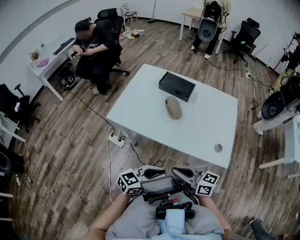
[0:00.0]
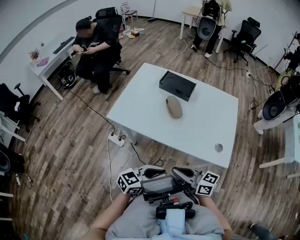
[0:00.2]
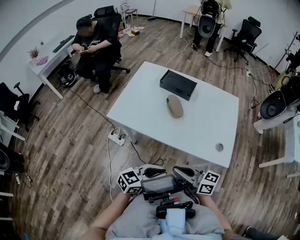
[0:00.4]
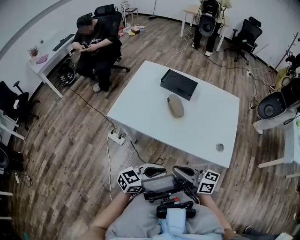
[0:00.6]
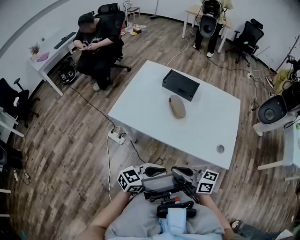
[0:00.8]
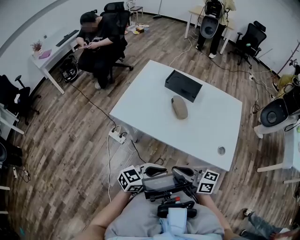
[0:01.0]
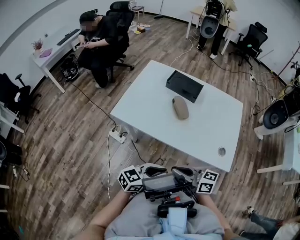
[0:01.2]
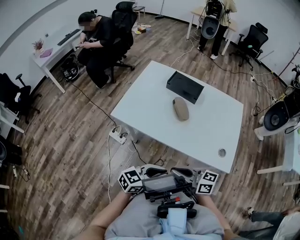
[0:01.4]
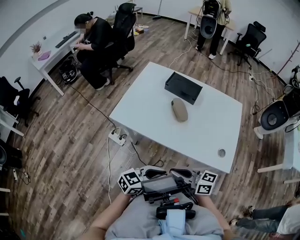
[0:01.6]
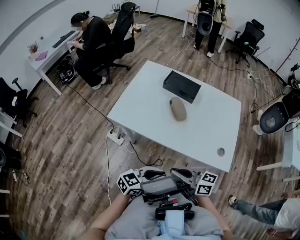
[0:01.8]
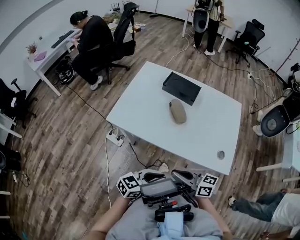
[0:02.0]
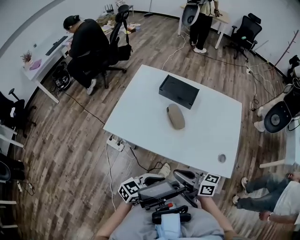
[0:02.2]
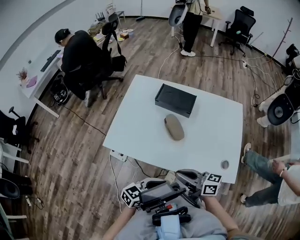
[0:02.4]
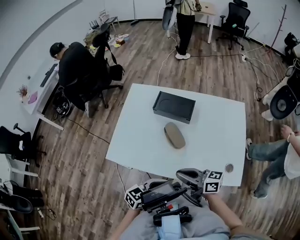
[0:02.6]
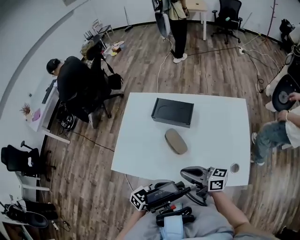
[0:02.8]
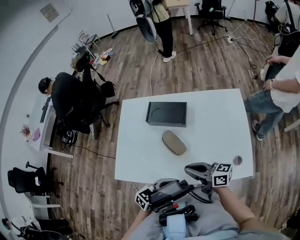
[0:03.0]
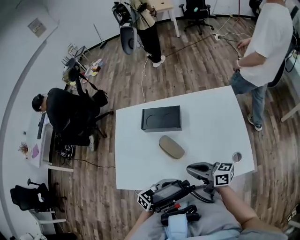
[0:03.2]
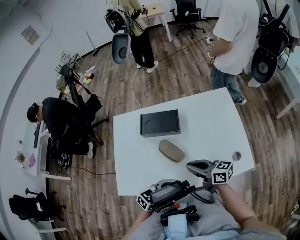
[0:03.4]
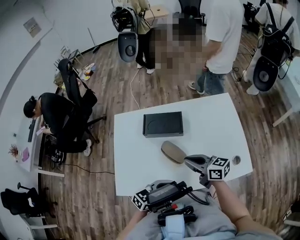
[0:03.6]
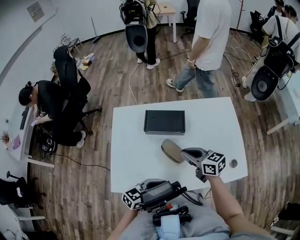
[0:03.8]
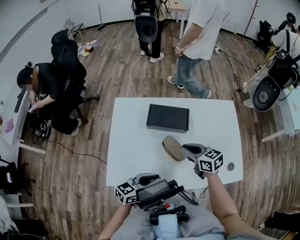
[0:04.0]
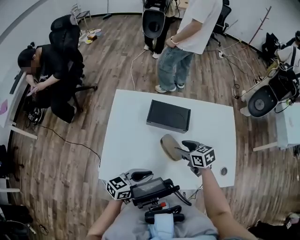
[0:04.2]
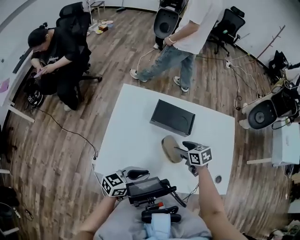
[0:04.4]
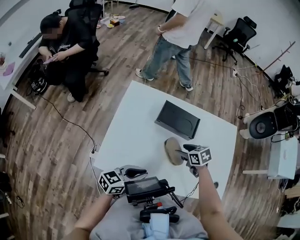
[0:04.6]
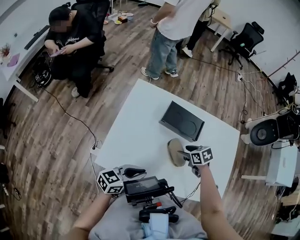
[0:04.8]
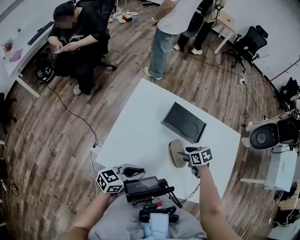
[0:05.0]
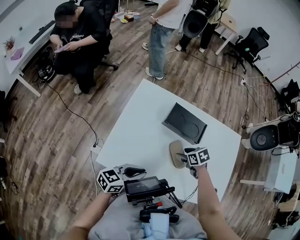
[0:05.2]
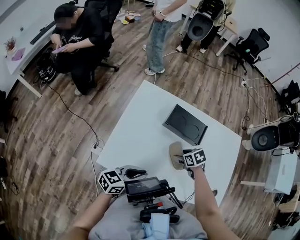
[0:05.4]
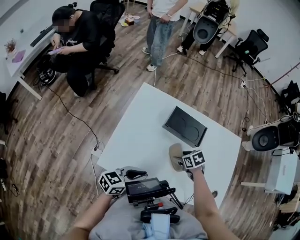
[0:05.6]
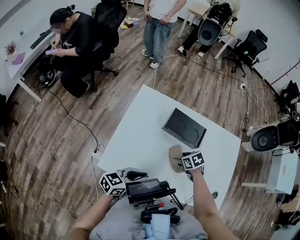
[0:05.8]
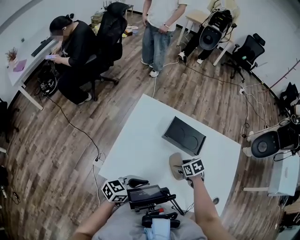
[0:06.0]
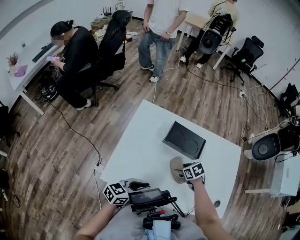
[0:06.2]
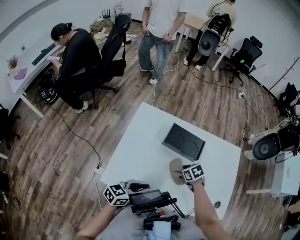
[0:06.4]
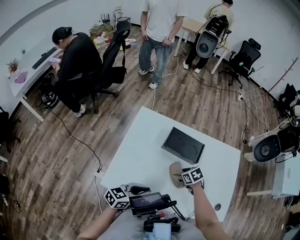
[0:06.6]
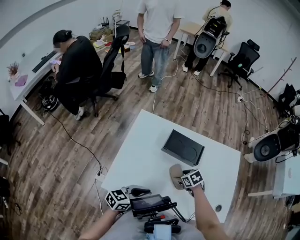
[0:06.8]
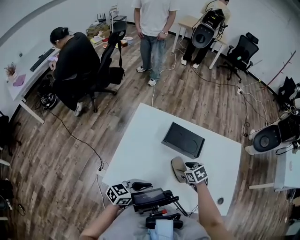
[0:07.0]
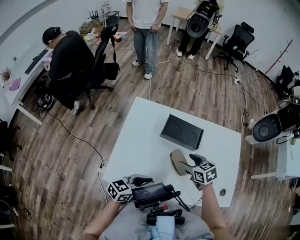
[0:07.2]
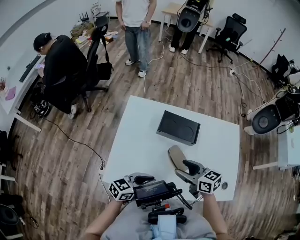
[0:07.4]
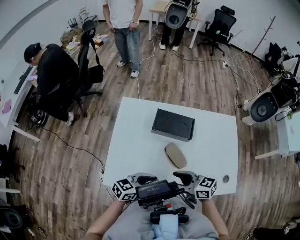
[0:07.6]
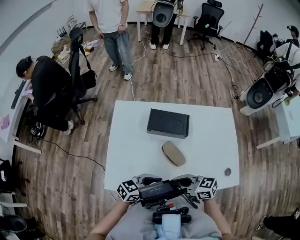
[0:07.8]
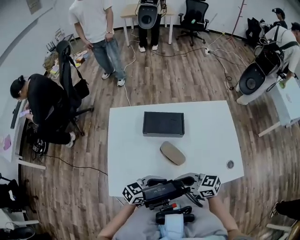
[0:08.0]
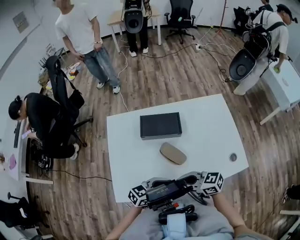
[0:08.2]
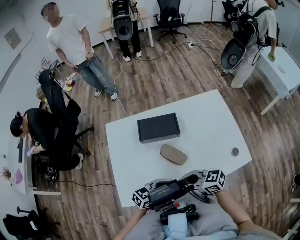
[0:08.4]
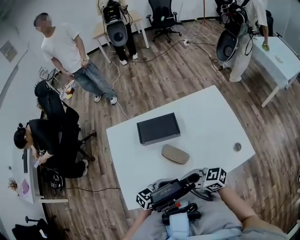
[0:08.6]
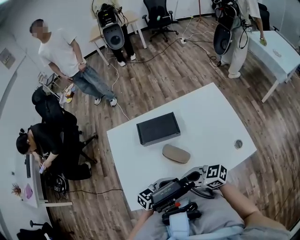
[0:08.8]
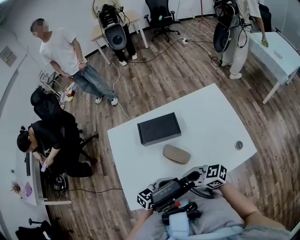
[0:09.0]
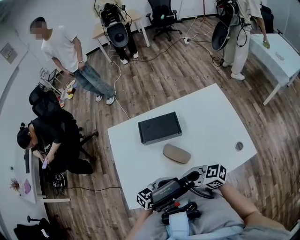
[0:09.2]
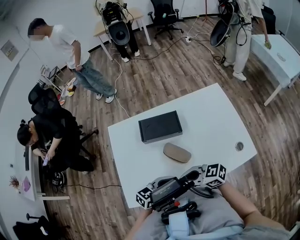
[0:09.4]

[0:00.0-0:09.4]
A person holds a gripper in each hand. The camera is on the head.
0:00.0 to 0:01.6: The grippers move only a little.
0:01.6 to 0:03.2: The right gripper ends up roughly 25 cm from where it was, and swivels approximately 20 degrees, while the left gripper changes place by about 20 cm, and changes its angle by some 20 degrees.
0:03.2 to 0:04.8: The right gripper moves approximately 20 cm, tilts its fingers about 60 degrees downward, and opens its fingers, while the left gripper changes place by some 15 cm, and swivels about 20 degrees.
0:04.8 to 0:06.2: The grippers move only a little.
0:06.2 to 0:07.8: The left gripper changes place by approximately 5 cm; the right gripper moves approximately 25 cm, tilts its fingers roughly 50 degrees upward, and closes its fingers.
0:07.8 to 0:09.4: The grippers stay close to where they were, moving slightly.

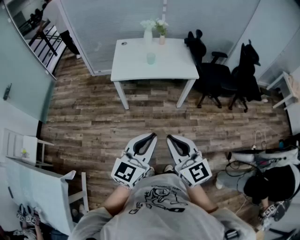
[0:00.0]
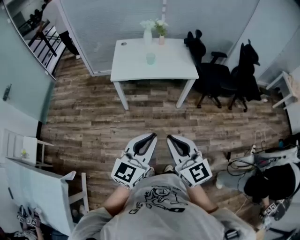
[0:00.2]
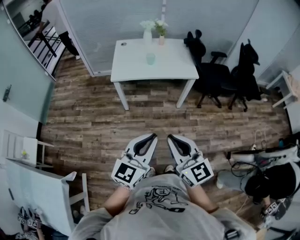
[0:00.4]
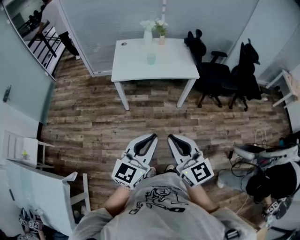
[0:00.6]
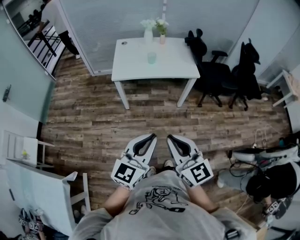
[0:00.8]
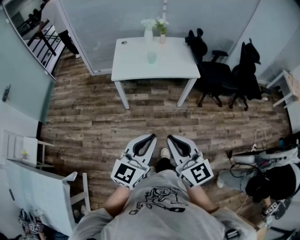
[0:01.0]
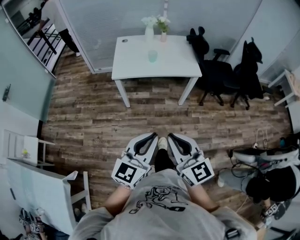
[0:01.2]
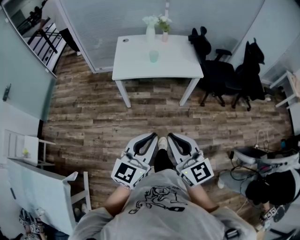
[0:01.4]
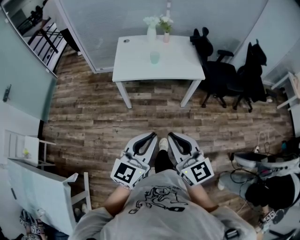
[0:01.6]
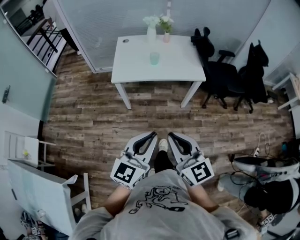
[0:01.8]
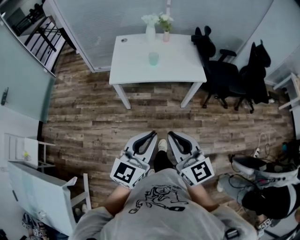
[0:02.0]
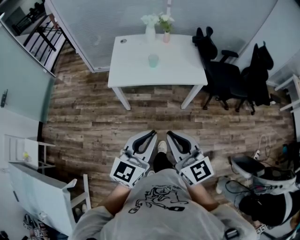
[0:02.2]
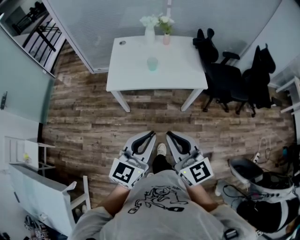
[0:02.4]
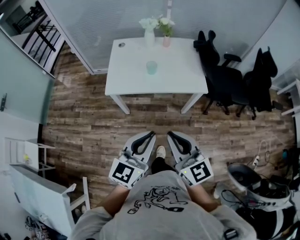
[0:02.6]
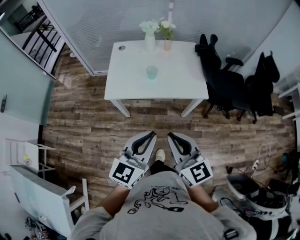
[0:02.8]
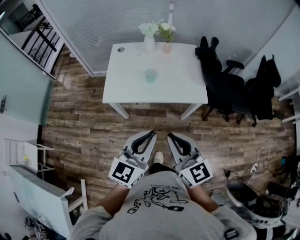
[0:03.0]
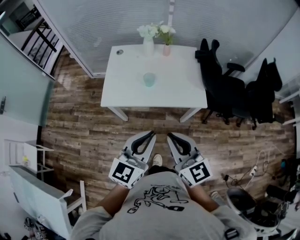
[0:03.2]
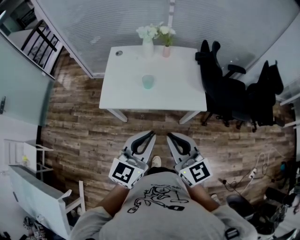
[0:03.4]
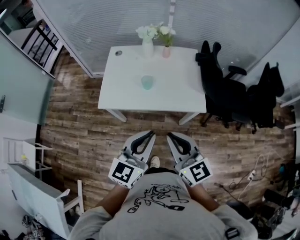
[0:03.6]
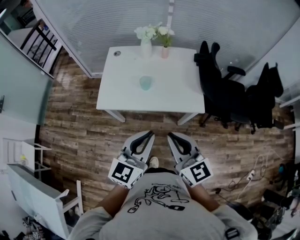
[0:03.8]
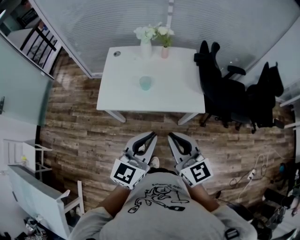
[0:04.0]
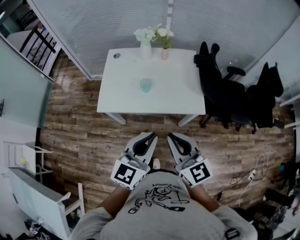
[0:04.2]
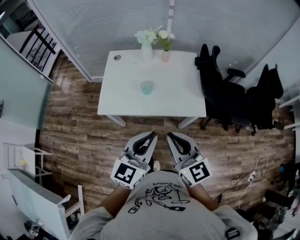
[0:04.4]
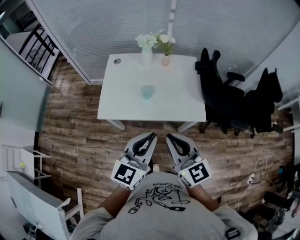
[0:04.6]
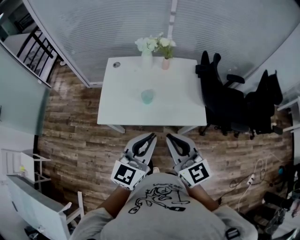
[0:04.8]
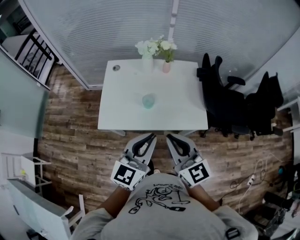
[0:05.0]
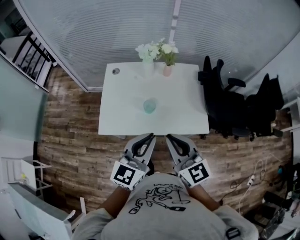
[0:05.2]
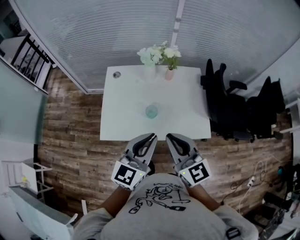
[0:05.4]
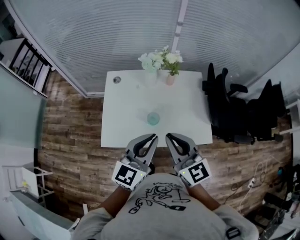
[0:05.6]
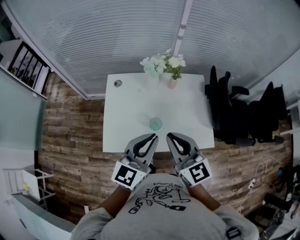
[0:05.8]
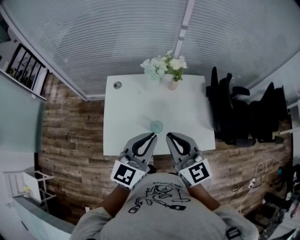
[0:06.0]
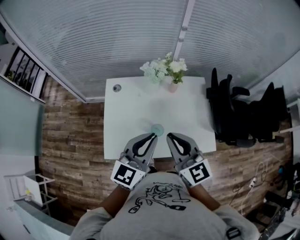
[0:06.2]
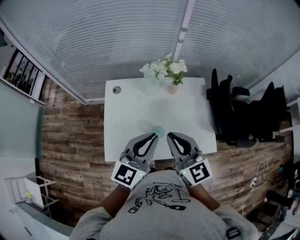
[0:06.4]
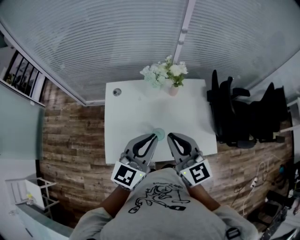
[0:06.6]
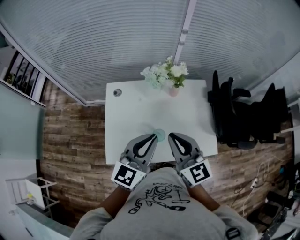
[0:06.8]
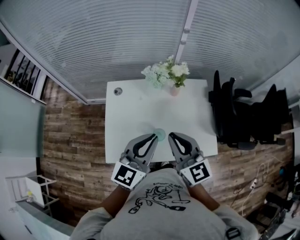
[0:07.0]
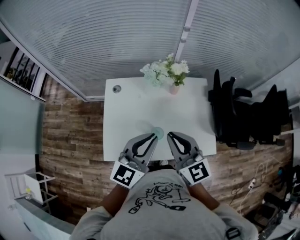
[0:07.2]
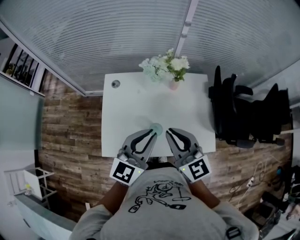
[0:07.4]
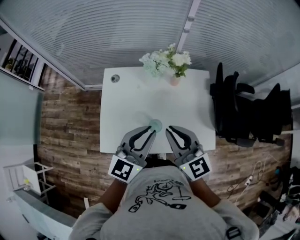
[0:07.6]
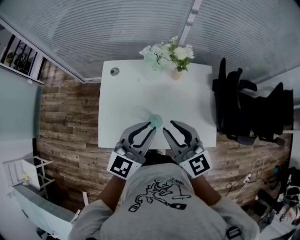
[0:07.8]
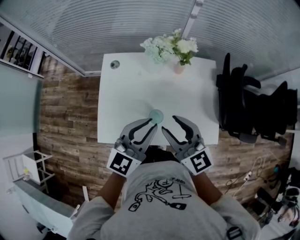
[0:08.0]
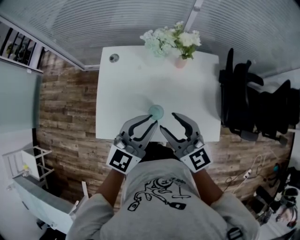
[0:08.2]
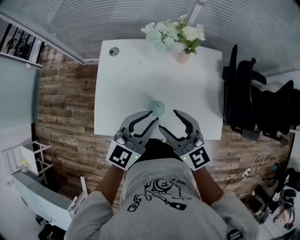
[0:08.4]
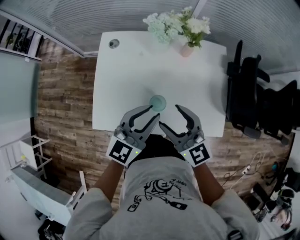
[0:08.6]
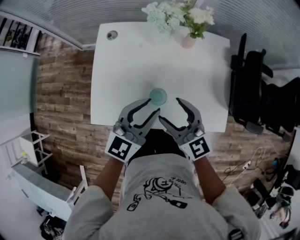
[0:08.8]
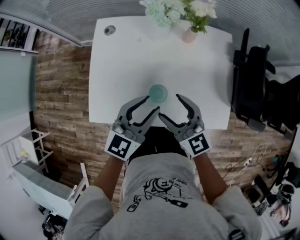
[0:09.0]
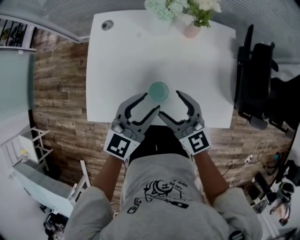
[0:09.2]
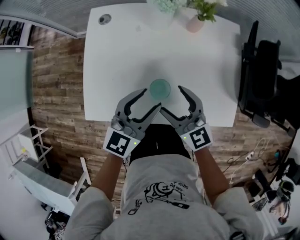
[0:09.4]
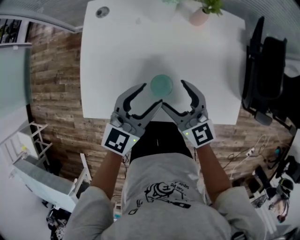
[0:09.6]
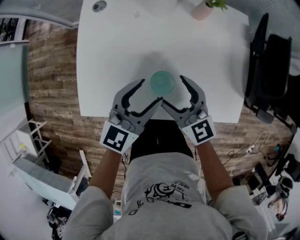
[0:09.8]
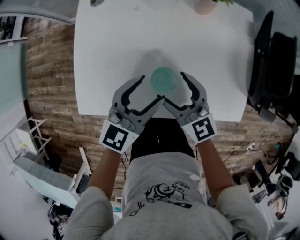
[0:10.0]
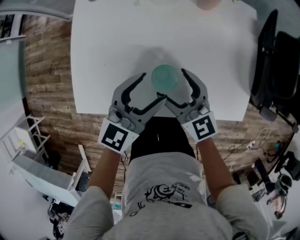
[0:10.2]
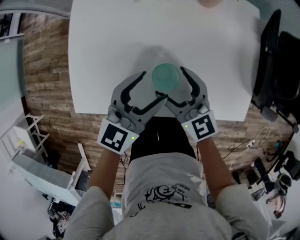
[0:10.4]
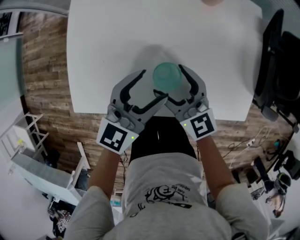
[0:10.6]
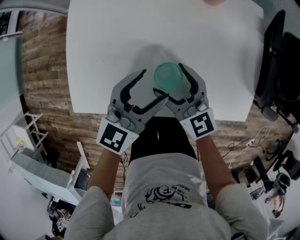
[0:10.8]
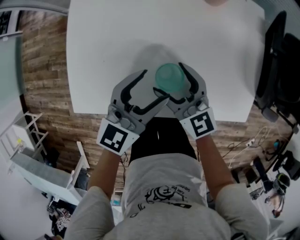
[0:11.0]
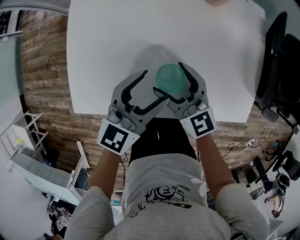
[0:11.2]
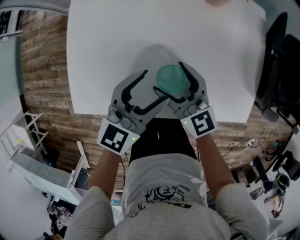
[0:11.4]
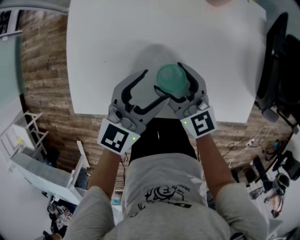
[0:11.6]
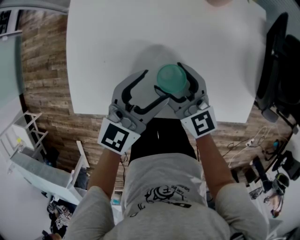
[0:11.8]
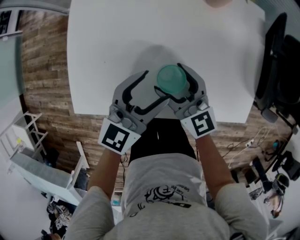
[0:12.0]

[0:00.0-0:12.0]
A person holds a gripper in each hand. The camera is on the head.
0:00.0 to 0:01.6: Both grippers move forward, some 5 cm.
0:01.6 to 0:03.0: The grippers both shift forward by about 25 cm.
0:03.0 to 0:04.4: Both grippers travel together forward, about 10 cm.
0:04.4 to 0:06.0: Both grippers travel together forward, about 25 cm.
0:06.0 to 0:07.6: Both grippers move forward, about 5 cm.
0:07.6 to 0:09.0: The two grippers go approximately 15 cm downward. The right gripper opens its fingers.
0:09.0 to 0:10.4: The grippers both shift downward by approximately 10 cm. The left gripper opens up.
0:10.4 to 0:12.0: The grippers move only a little.

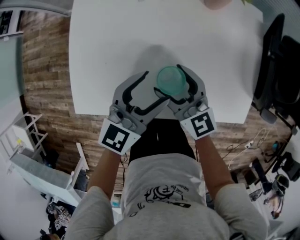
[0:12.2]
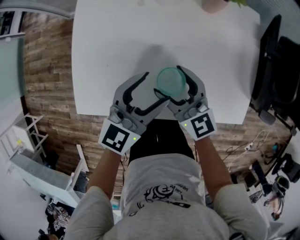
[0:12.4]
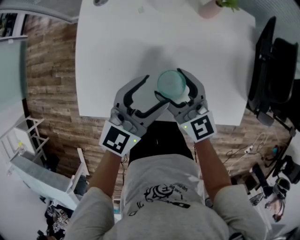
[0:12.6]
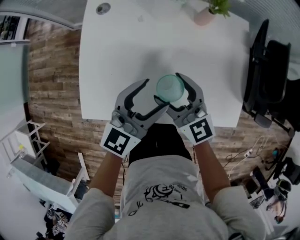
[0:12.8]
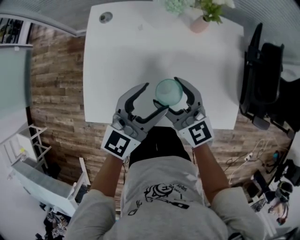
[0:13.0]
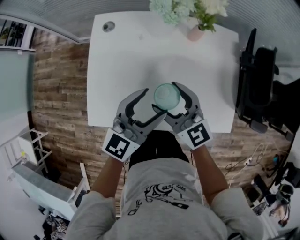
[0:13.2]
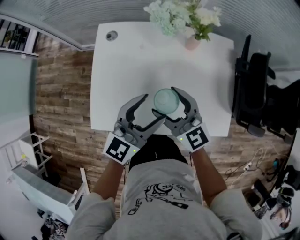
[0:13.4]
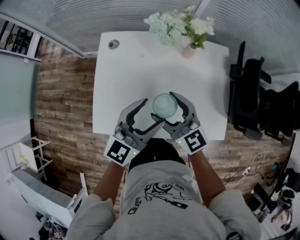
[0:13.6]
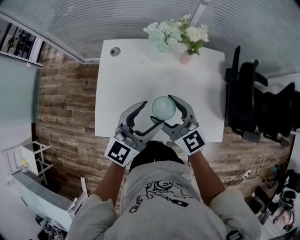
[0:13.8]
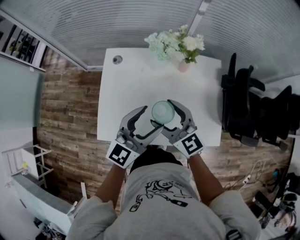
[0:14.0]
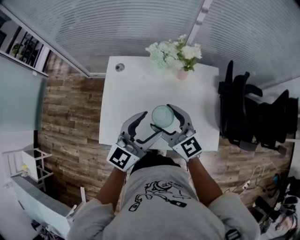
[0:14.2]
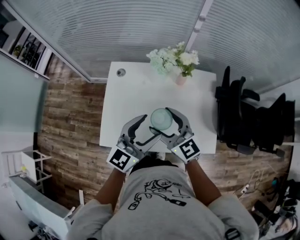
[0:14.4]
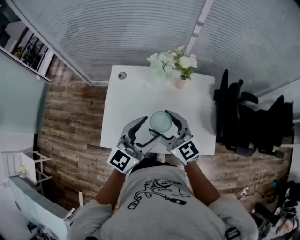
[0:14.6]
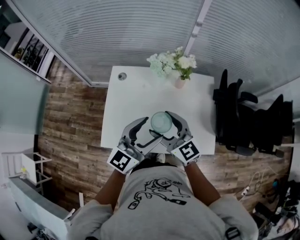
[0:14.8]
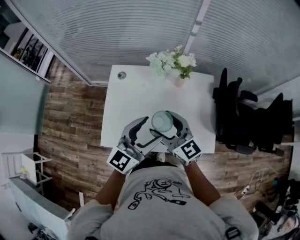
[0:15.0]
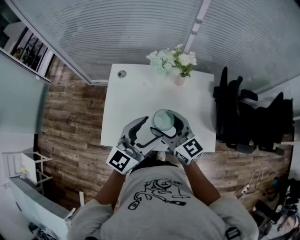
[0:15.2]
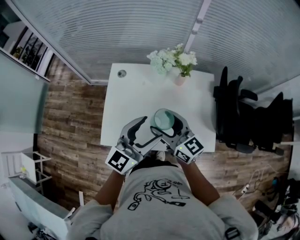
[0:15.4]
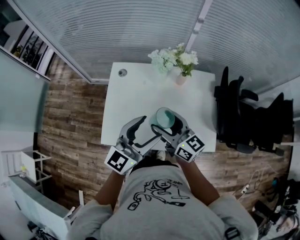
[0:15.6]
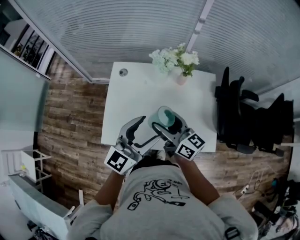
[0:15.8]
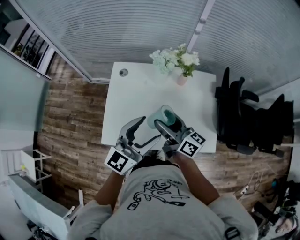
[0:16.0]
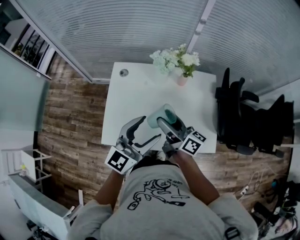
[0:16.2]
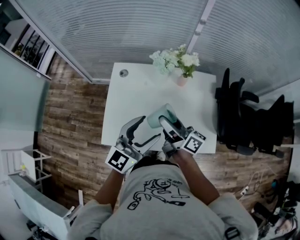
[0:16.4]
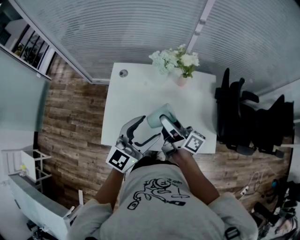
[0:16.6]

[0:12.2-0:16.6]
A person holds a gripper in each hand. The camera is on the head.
0:12.2 to 0:13.6: The grippers both shift upward by some 15 cm.
0:13.6 to 0:15.2: The two grippers go approximately 10 cm upward.
0:15.2 to 0:16.6: The right gripper rotates around the line of its fingers by about 50 degrees, clockwise from behind.
